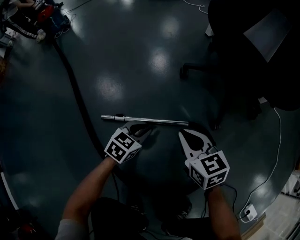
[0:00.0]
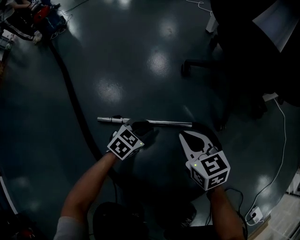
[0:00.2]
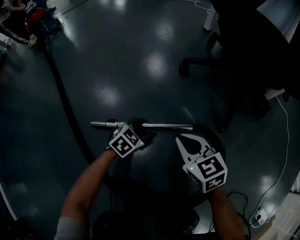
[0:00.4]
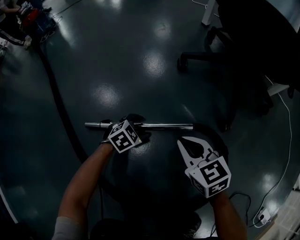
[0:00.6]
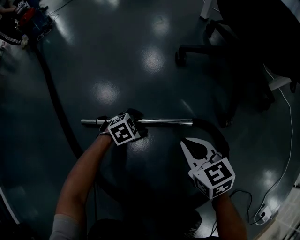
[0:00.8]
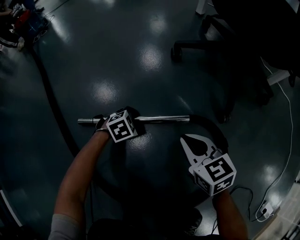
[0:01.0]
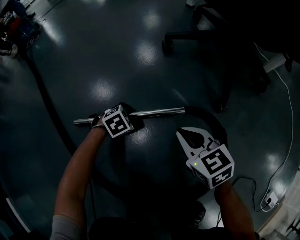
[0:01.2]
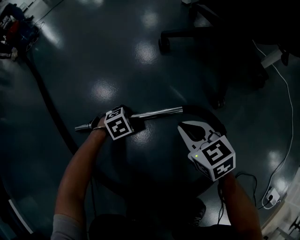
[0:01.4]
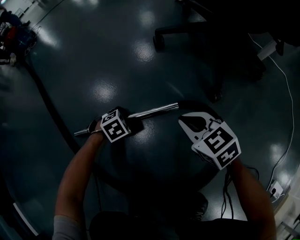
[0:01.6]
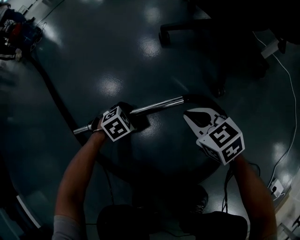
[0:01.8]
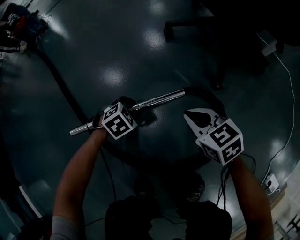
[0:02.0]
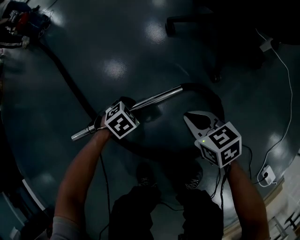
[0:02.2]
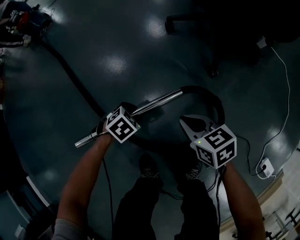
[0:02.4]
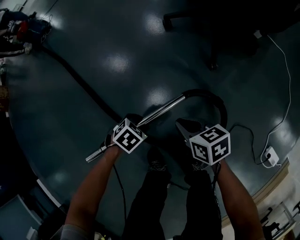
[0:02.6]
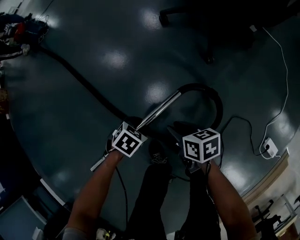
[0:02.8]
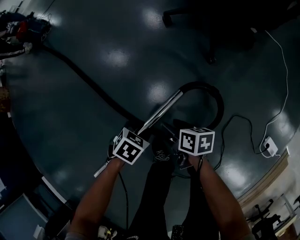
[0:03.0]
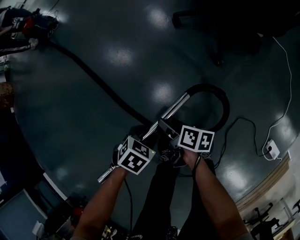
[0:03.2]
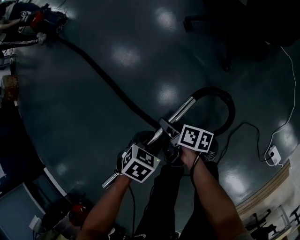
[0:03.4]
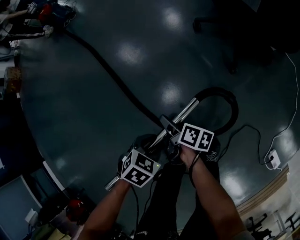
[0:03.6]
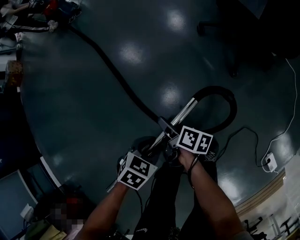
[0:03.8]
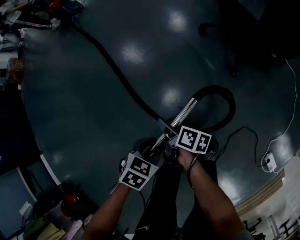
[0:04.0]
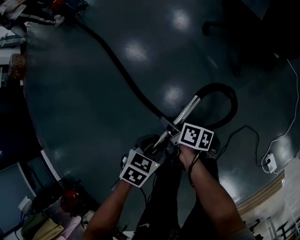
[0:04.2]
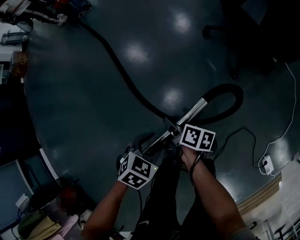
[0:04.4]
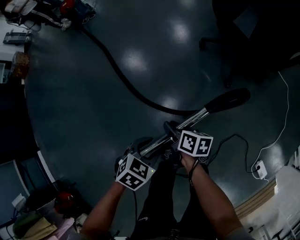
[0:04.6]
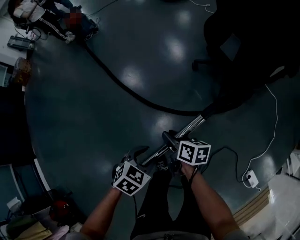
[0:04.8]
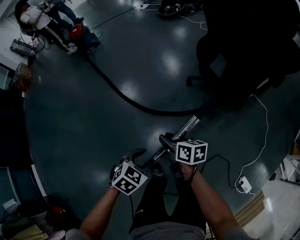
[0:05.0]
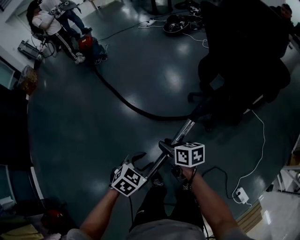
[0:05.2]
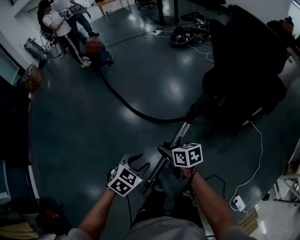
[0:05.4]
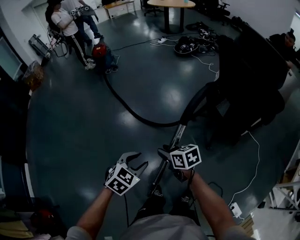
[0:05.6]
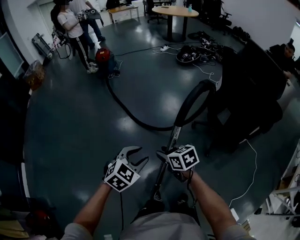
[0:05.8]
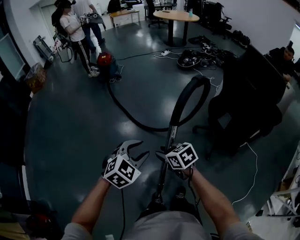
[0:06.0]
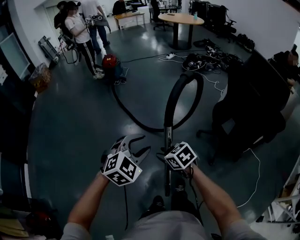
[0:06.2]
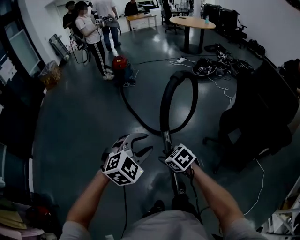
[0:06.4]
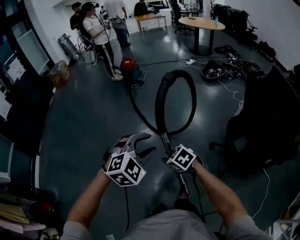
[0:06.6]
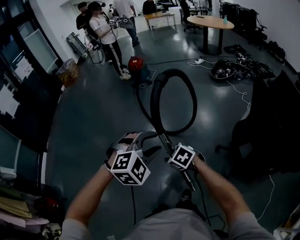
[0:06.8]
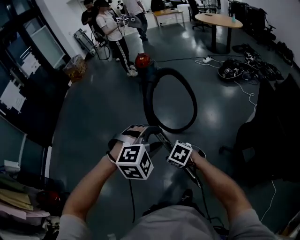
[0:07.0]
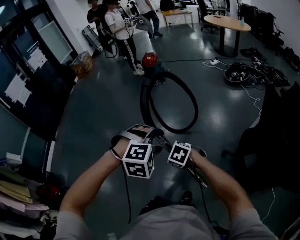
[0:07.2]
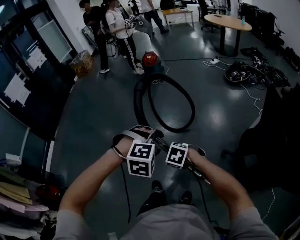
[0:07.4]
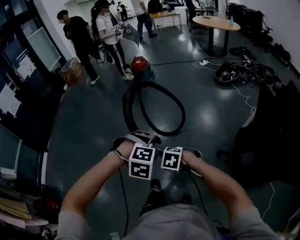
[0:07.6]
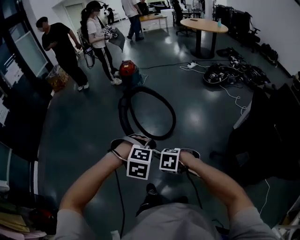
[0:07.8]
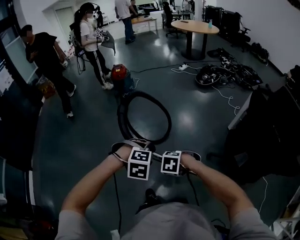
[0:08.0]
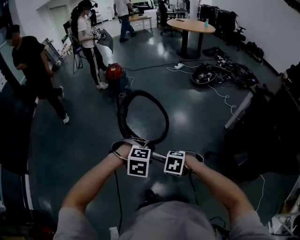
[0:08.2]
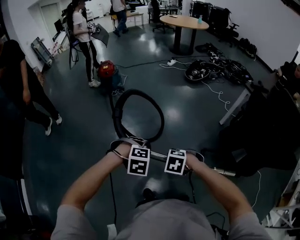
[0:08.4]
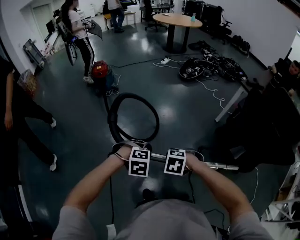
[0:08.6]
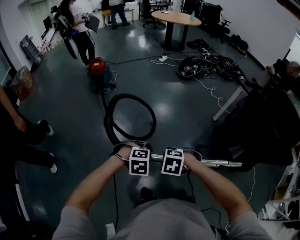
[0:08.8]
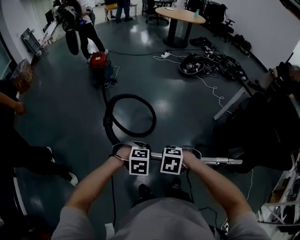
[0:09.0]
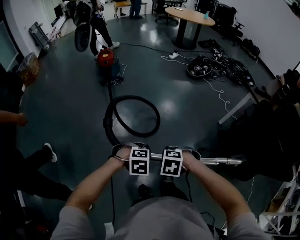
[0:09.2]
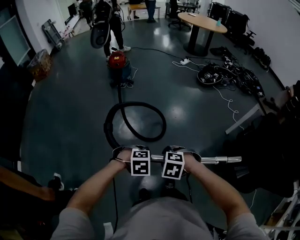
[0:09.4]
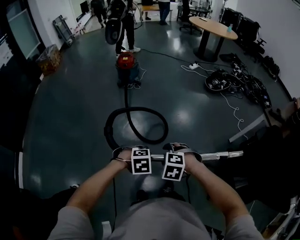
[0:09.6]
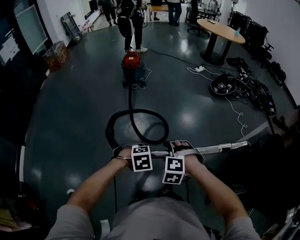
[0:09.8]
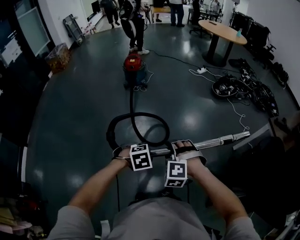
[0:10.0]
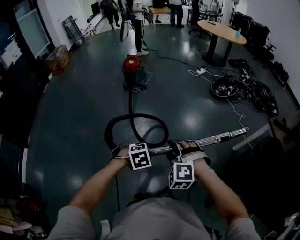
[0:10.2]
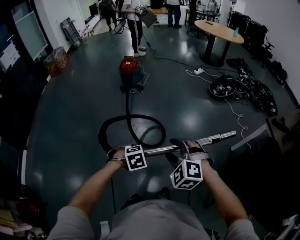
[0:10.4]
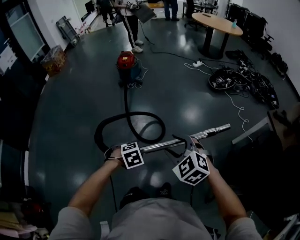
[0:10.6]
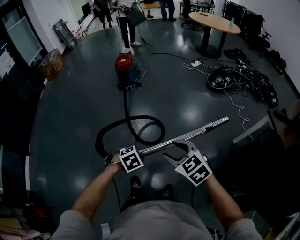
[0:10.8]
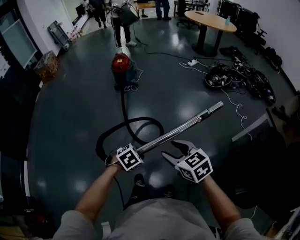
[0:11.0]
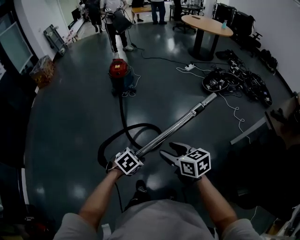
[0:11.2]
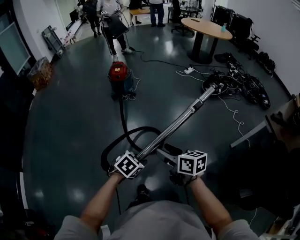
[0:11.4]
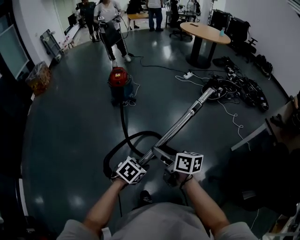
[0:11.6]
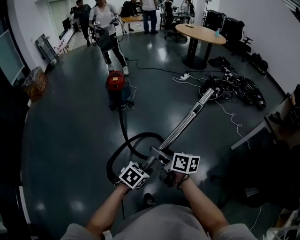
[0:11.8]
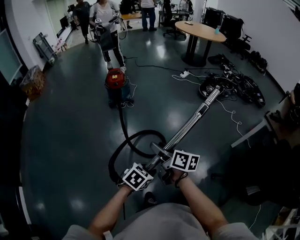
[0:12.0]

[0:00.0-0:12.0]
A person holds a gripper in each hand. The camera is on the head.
0:00.0 to 0:01.6: The grippers both shift downward by some 20 cm. The left gripper angles its fingers downward, by some 40 degrees, and opens its fingers.
0:01.6 to 0:03.0: The right gripper shifts by some 25 cm, twists some 60 degrees clockwise, seen from behind, and opens up; the left gripper goes roughly 35 cm upward, and swivels roughly 30 degrees.
0:03.0 to 0:04.4: The right gripper changes place by roughly 15 cm. Meanwhile the left gripper shifts about 15 cm upward.
0:04.4 to 0:06.0: Both grippers move upward, approximately 40 cm. The left gripper swivels roughly 40 degrees; the right gripper rolls counterclockwise, seen from behind, by about 70 degrees.
0:06.0 to 0:07.6: The right gripper changes place by about 15 cm, and rotates around the line of its fingers by approximately 50 degrees, counterclockwise from behind; the left gripper reaches some 10 cm upward, then returns, and points its fingers approximately 30 degrees further downward.
0:07.6 to 0:09.0: The right gripper ends up some 15 cm from where it was; the left gripper ends up about 20 cm from where it was, and turns by some 20 degrees.
0:09.0 to 0:10.4: The right gripper moves about 20 cm, tilts its fingers approximately 40 degrees upward, and opens up. The left gripper moves approximately 10 cm, and swivels approximately 40 degrees.
0:10.4 to 0:12.0: The left gripper moves about 20 cm, and turns by some 30 degrees, while the right gripper changes place by approximately 30 cm, and rotates around the line of its fingers by roughly 100 degrees, clockwise from behind.

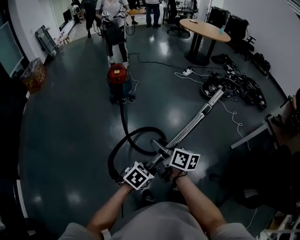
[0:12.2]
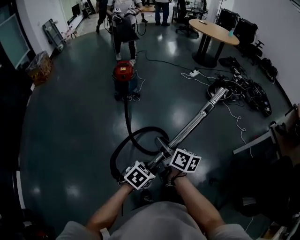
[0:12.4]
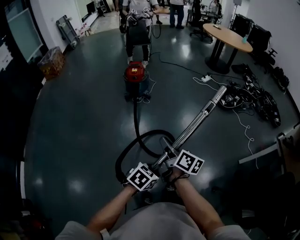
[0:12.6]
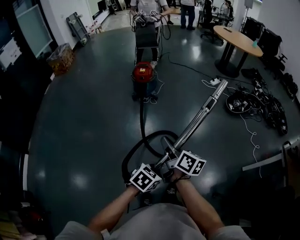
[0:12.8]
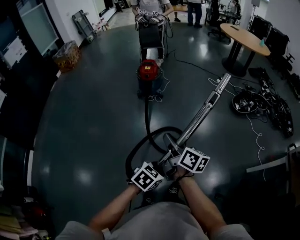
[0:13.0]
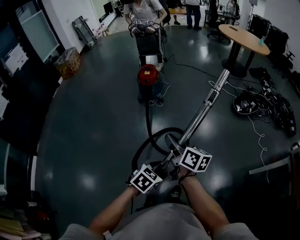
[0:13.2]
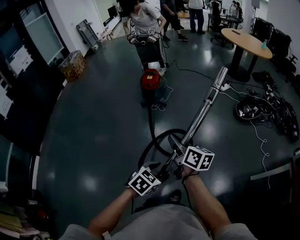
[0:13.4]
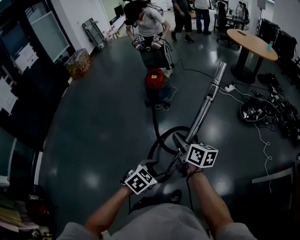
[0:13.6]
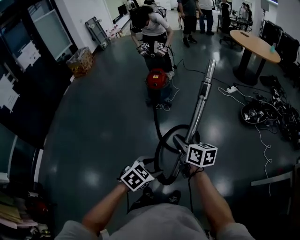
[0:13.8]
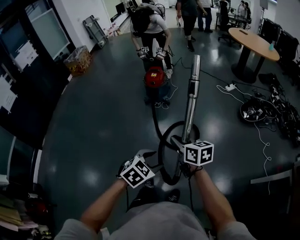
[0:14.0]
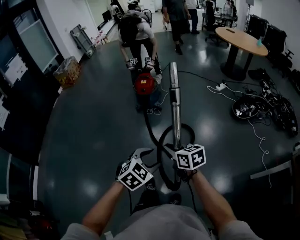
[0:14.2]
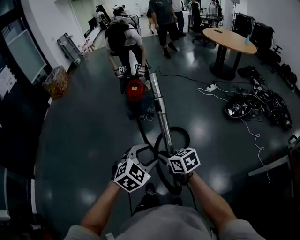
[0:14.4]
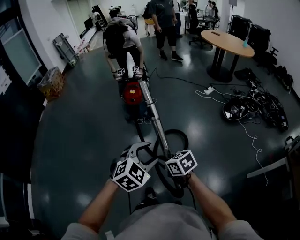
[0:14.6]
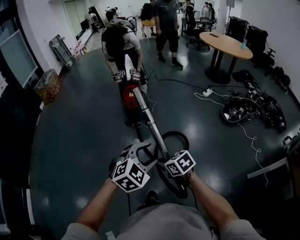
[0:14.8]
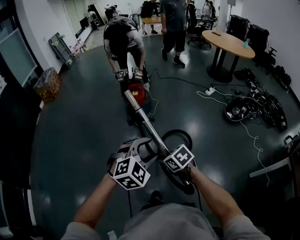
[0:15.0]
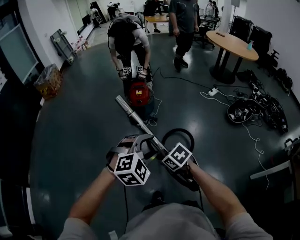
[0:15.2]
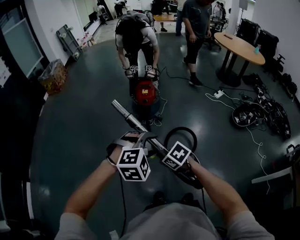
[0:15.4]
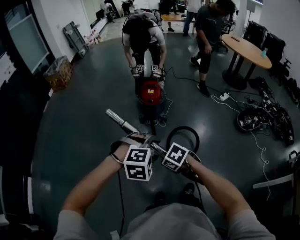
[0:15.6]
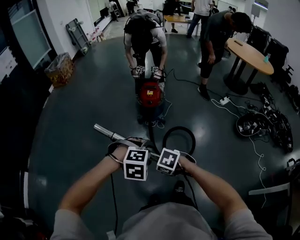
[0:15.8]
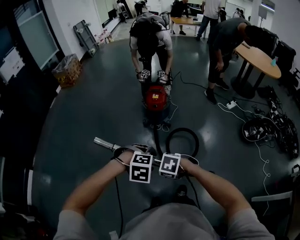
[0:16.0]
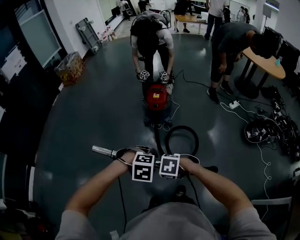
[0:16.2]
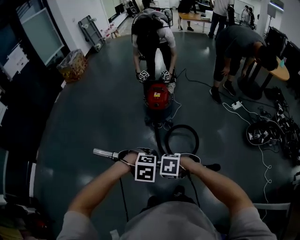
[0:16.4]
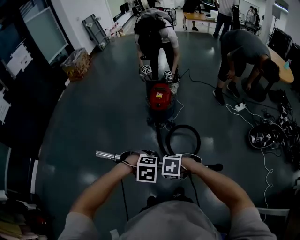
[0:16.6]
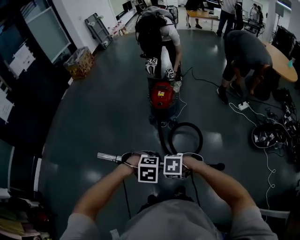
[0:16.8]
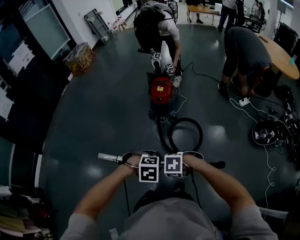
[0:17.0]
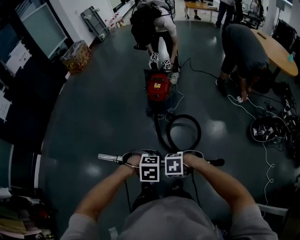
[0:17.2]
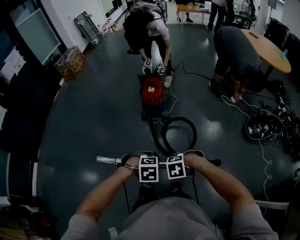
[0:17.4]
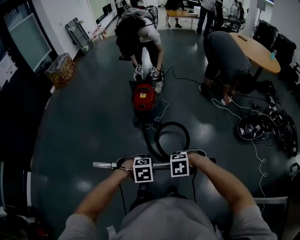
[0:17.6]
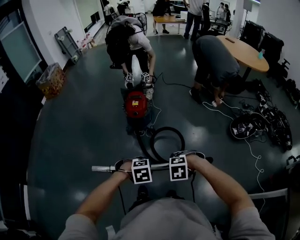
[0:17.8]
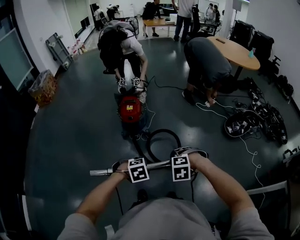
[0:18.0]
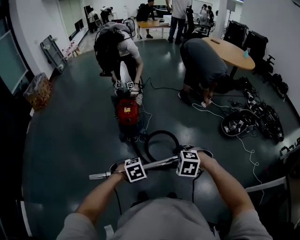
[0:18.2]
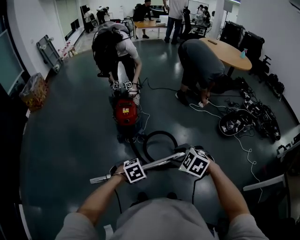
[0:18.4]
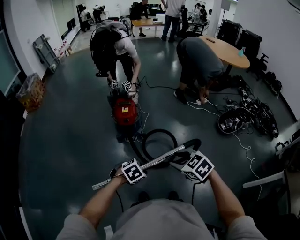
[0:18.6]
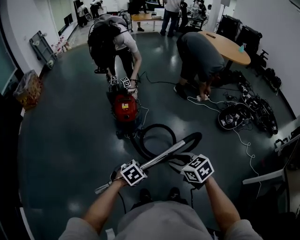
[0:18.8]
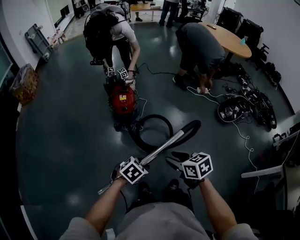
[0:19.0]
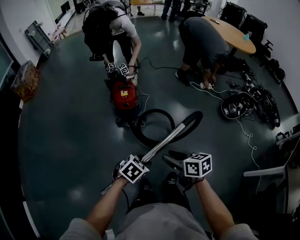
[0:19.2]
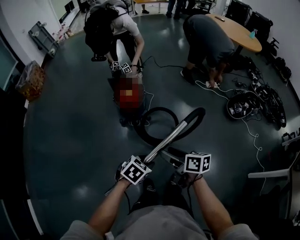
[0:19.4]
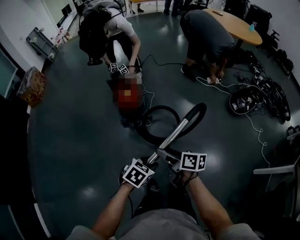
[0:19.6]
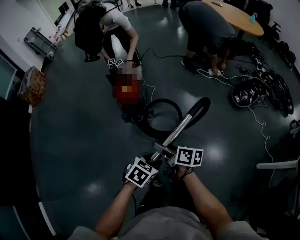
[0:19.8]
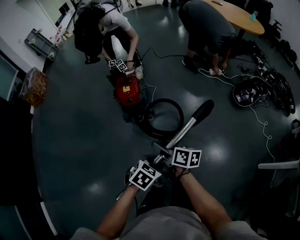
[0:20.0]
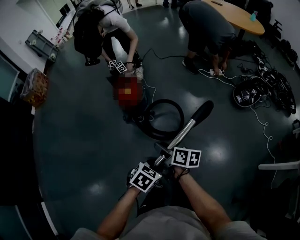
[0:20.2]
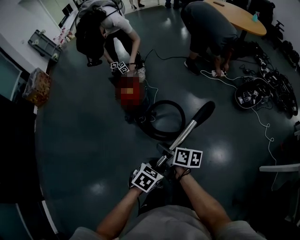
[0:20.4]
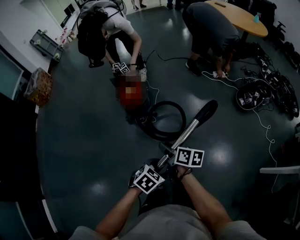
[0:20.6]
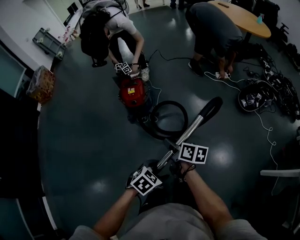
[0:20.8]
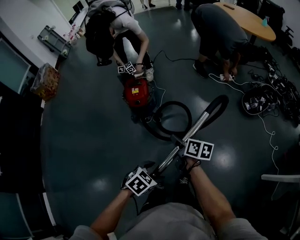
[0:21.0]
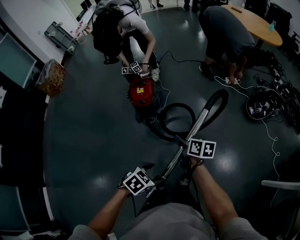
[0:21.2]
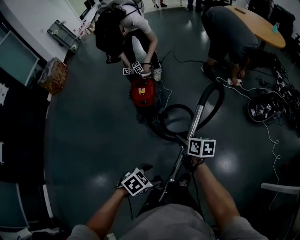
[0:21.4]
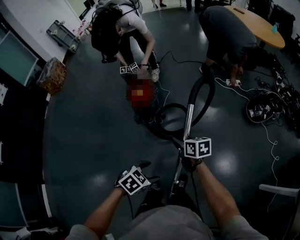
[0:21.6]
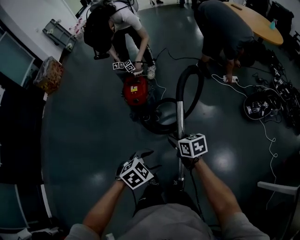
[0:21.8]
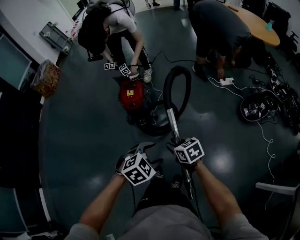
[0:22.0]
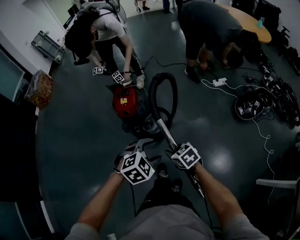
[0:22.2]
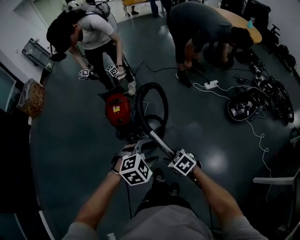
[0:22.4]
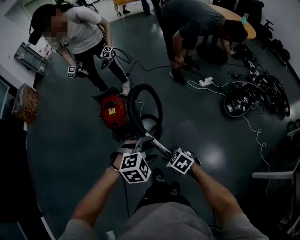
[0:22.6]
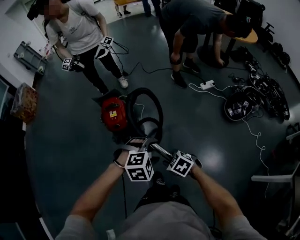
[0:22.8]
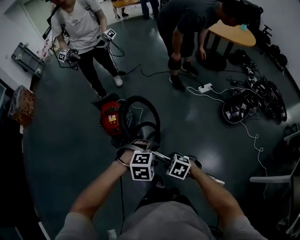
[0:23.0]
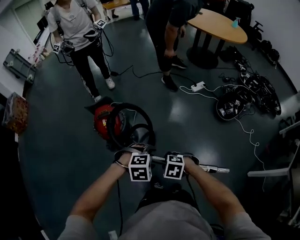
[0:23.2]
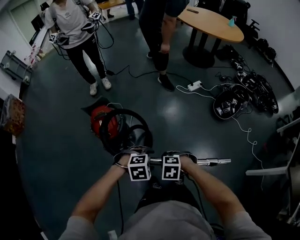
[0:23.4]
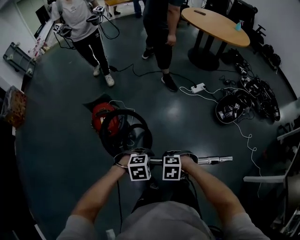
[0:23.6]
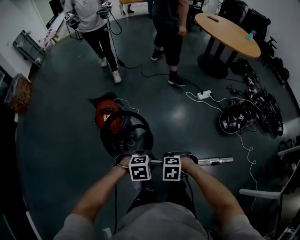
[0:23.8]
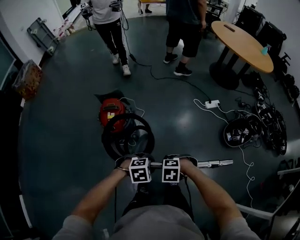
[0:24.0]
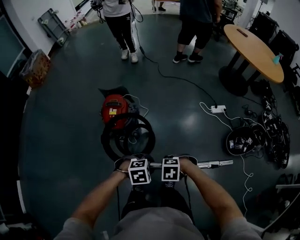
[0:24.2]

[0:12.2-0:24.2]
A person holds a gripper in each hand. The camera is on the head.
0:12.2 to 0:13.8: The left gripper is displaced forward by some 15 cm, and opens its fingers, while the right gripper is displaced forward and to the right by about 15 cm, swivels about 30 degrees, and closes up.
0:13.8 to 0:15.2: The right gripper shifts roughly 25 cm to the left, forward and downward, and angles its fingers downward, by approximately 40 degrees; the left gripper heads forward, covering some 30 cm, and rolls clockwise, seen from behind, by approximately 50 degrees.
0:15.2 to 0:16.6: The left gripper heads downward, covering approximately 15 cm, and tilts its fingers about 40 degrees downward. The right gripper changes place by roughly 10 cm, and twists approximately 40 degrees counterclockwise, seen from behind.
0:16.6 to 0:18.2: The right gripper changes place by approximately 15 cm, changes its angle by roughly 30 degrees, and opens up; the left gripper moves some 5 cm.
0:18.2 to 0:19.8: The right gripper moves to the left, forward and downward, some 15 cm, rolls clockwise, seen from behind, by roughly 100 degrees, and opens up. The left gripper travels forward by some 5 cm, and rotates roughly 30 degrees.
0:19.8 to 0:21.2: The left gripper moves roughly 5 cm, and opens its fingers, while the right gripper travels forward and to the right by roughly 10 cm, and closes.
0:21.2 to 0:22.6: The right gripper changes place by roughly 5 cm, and rolls counterclockwise, seen from behind, by some 50 degrees. The left gripper heads forward, covering roughly 25 cm, and rotates around the line of its fingers by about 50 degrees, clockwise from behind.
0:22.6 to 0:24.2: The right gripper shifts by approximately 10 cm, and twists some 40 degrees counterclockwise, seen from behind; the left gripper heads downward, covering some 10 cm, swivels some 30 degrees, and closes up.
